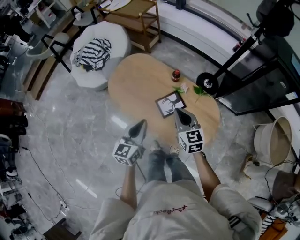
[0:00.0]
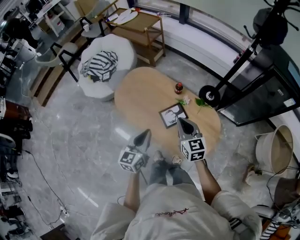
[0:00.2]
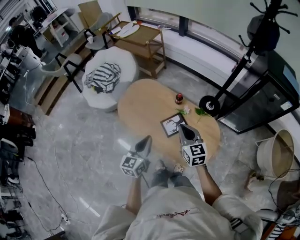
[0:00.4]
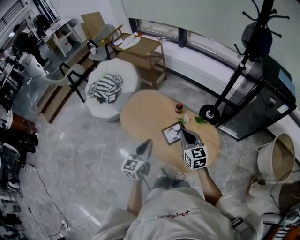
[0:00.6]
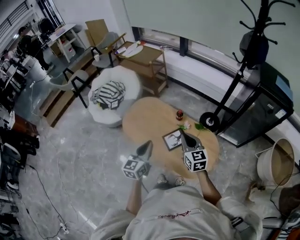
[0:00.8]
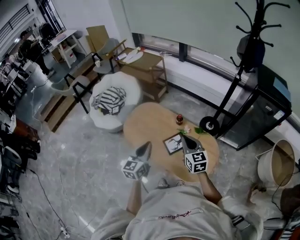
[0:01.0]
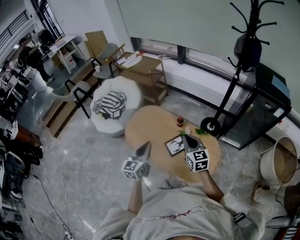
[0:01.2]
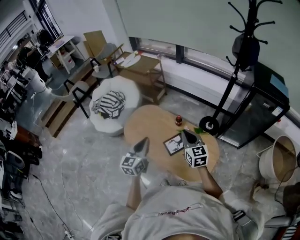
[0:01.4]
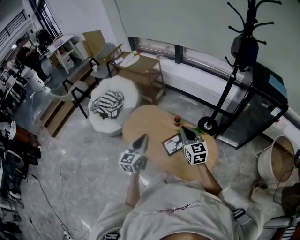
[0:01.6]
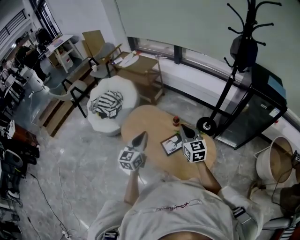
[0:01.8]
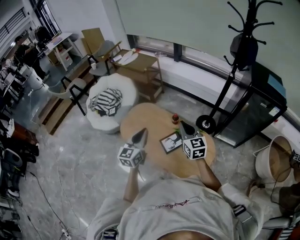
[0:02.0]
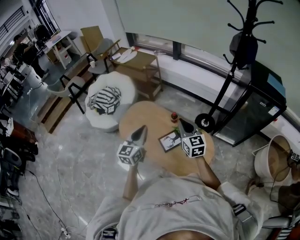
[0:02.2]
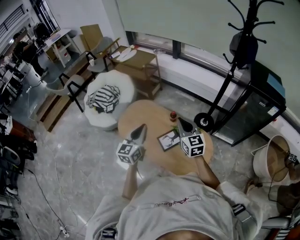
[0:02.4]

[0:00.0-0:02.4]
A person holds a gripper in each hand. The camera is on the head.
0:00.0 to 0:01.2: The grippers both shift upward by some 15 cm.
0:01.2 to 0:02.4: The right gripper shifts by some 5 cm. Meanwhile the left gripper heads forward, covering approximately 5 cm.

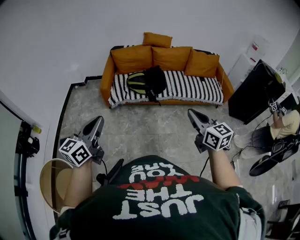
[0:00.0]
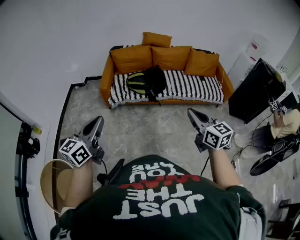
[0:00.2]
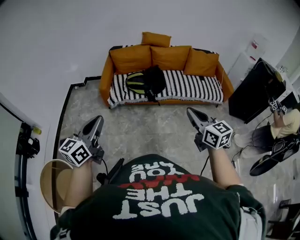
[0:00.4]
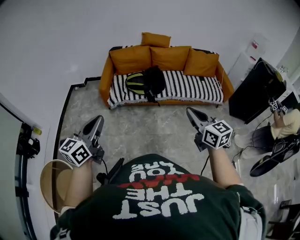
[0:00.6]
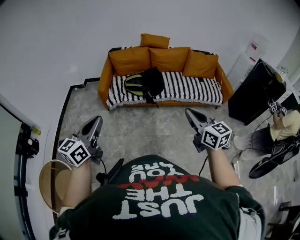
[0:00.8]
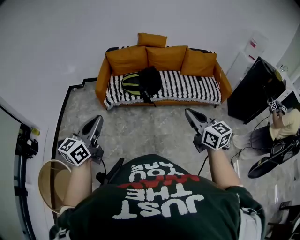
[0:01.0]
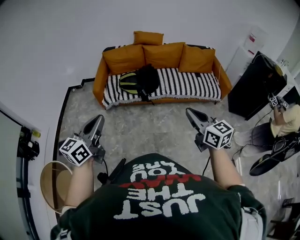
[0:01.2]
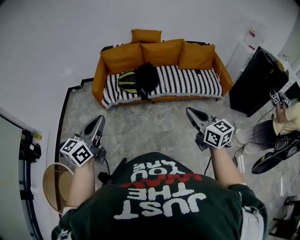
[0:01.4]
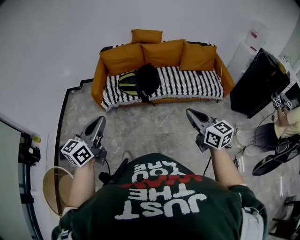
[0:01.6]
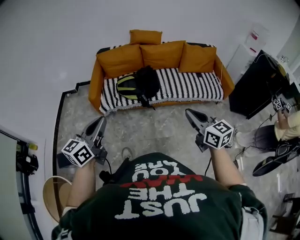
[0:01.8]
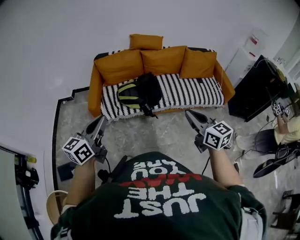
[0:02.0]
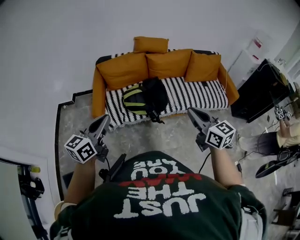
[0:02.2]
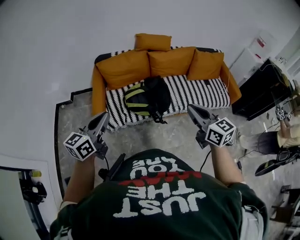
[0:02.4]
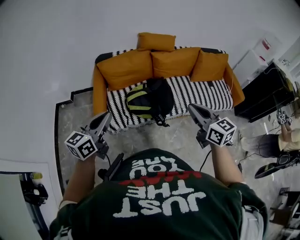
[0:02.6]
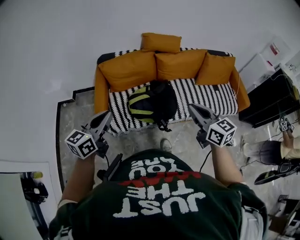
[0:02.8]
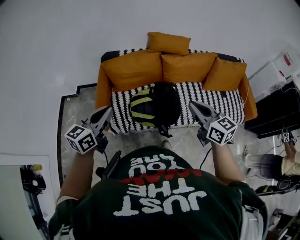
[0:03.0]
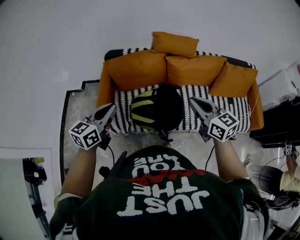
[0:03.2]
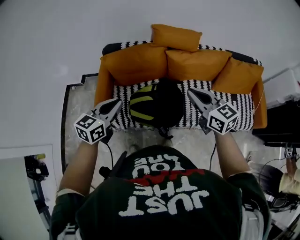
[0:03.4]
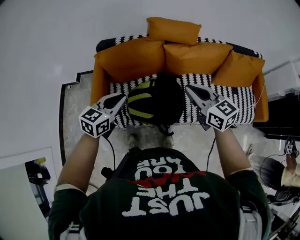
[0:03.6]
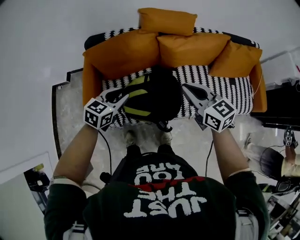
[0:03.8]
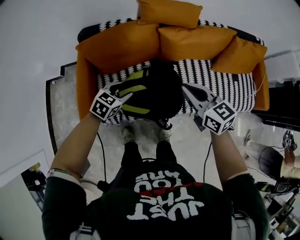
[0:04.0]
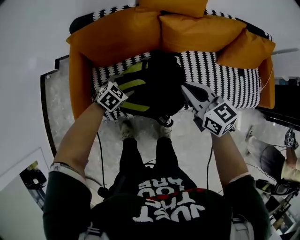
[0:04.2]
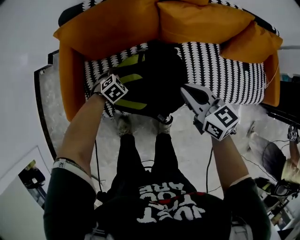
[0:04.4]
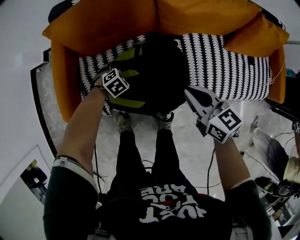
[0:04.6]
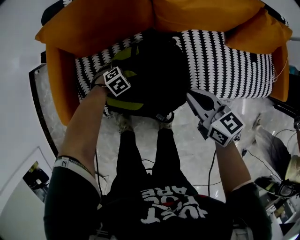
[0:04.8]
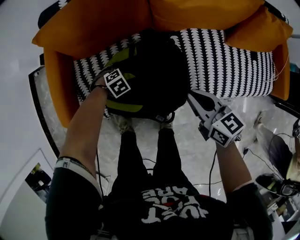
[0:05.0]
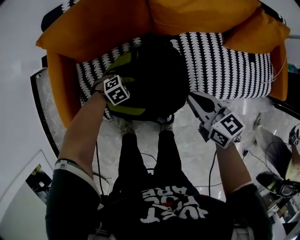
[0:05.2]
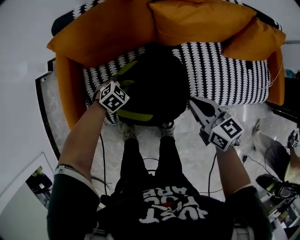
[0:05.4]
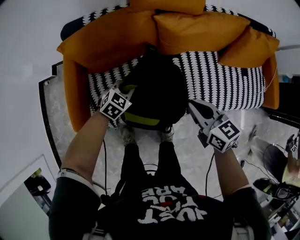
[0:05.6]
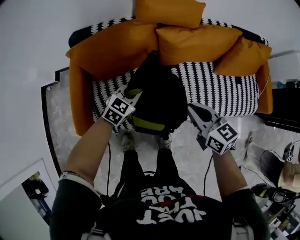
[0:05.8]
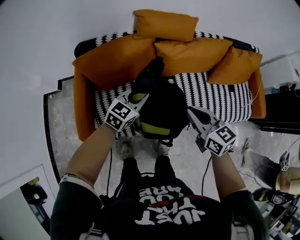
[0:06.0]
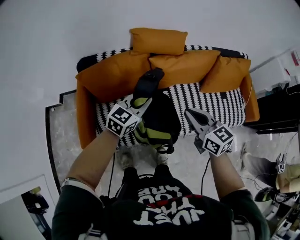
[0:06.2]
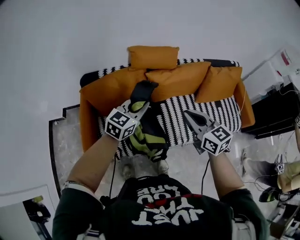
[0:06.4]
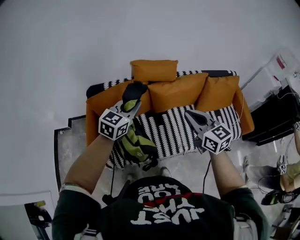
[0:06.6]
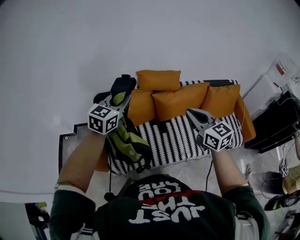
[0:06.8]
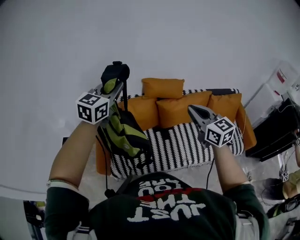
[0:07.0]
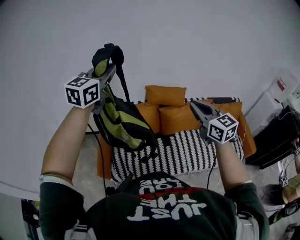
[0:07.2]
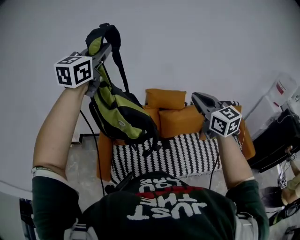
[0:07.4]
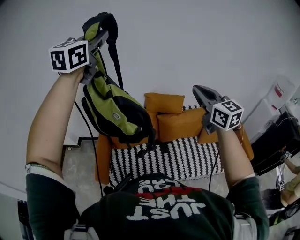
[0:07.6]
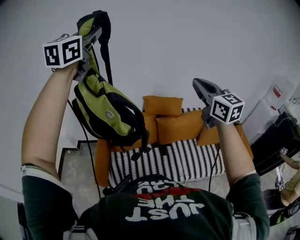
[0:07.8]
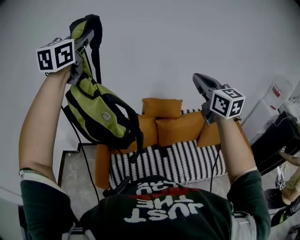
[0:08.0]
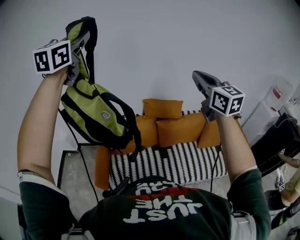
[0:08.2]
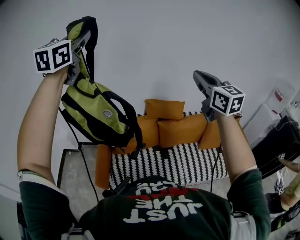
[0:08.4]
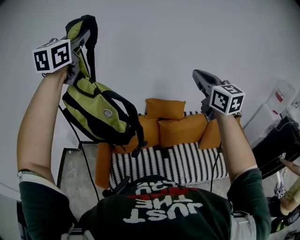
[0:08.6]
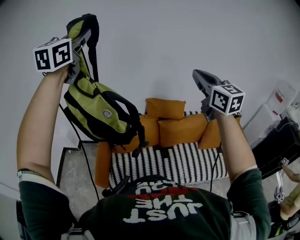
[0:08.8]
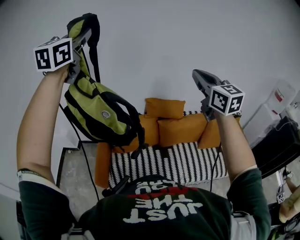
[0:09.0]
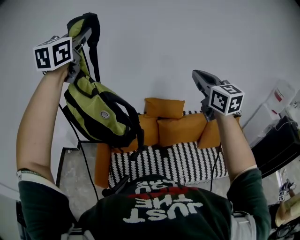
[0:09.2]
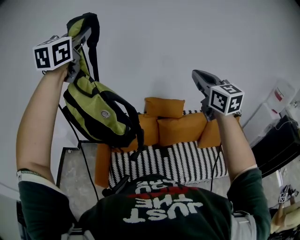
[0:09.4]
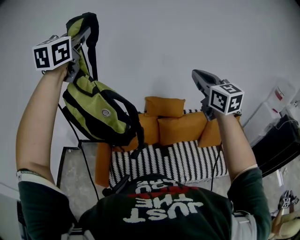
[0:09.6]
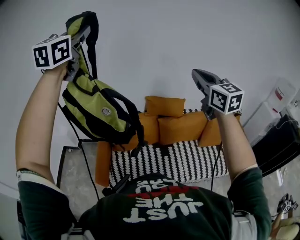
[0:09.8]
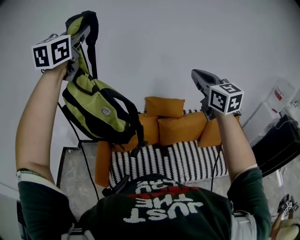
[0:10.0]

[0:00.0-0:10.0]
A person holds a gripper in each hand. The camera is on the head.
0:00.0 to 0:01.4: Both grippers travel together to the right, approximately 10 cm.
0:01.4 to 0:02.8: The pair of grippers is taken forward and to the left, about 50 cm.
0:02.8 to 0:04.2: The right gripper is displaced forward and downward by about 30 cm. The left gripper goes about 50 cm downward and forward, tilts its fingers about 50 degrees downward, and opens.
0:04.2 to 0:05.8: The right gripper reaches roughly 15 cm downward, then returns; the left gripper travels downward and back again, some 20 cm each way, changes its angle by about 20 degrees, and closes.
0:05.8 to 0:07.2: The left gripper travels upward by some 60 cm, and angles its fingers upward, by approximately 30 degrees; the right gripper goes approximately 35 cm upward, and rotates some 30 degrees.
0:07.2 to 0:08.6: The right gripper moves upward and forward, roughly 15 cm, while the left gripper heads upward, covering roughly 20 cm.
0:08.6 to 0:10.0: The grippers move only a little.

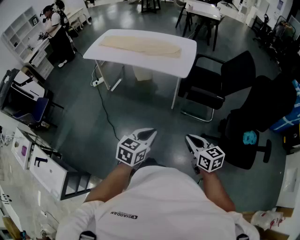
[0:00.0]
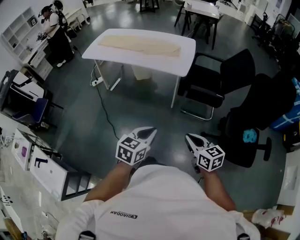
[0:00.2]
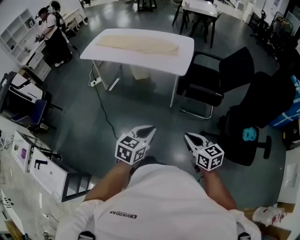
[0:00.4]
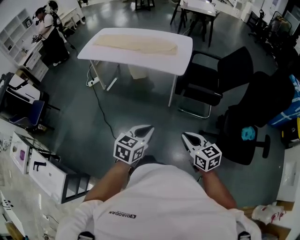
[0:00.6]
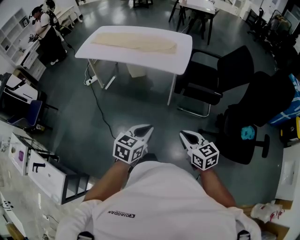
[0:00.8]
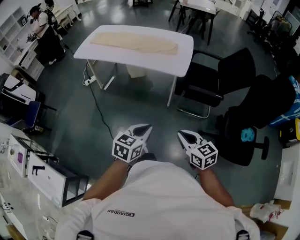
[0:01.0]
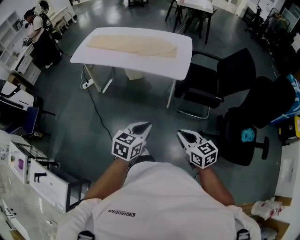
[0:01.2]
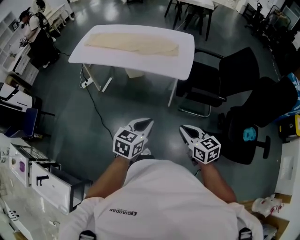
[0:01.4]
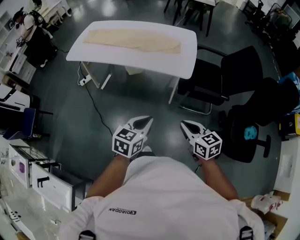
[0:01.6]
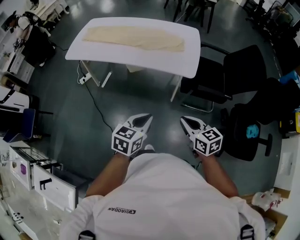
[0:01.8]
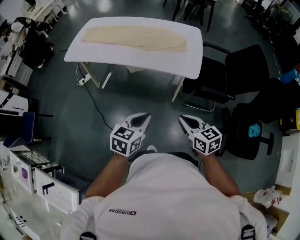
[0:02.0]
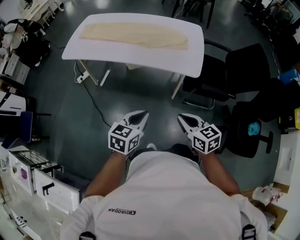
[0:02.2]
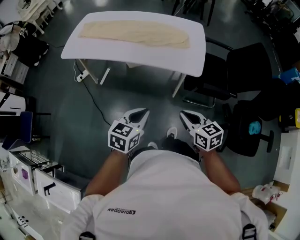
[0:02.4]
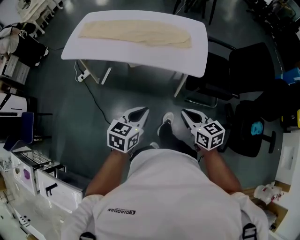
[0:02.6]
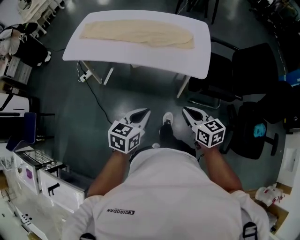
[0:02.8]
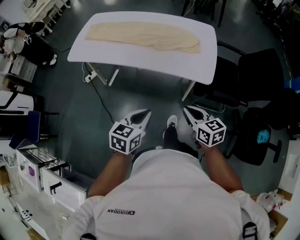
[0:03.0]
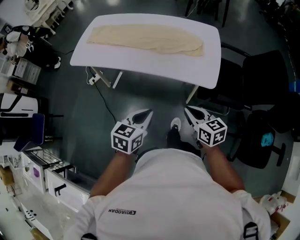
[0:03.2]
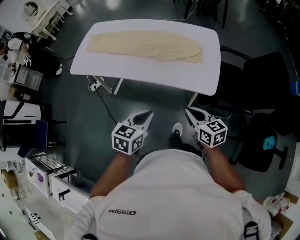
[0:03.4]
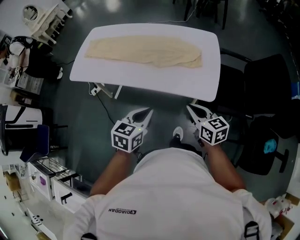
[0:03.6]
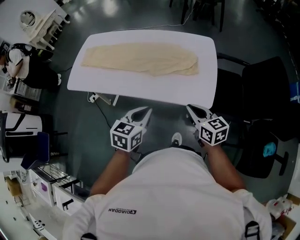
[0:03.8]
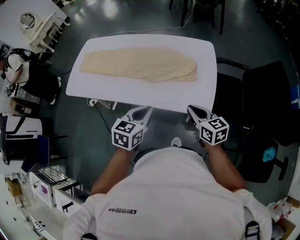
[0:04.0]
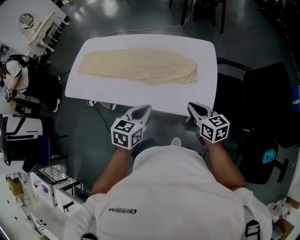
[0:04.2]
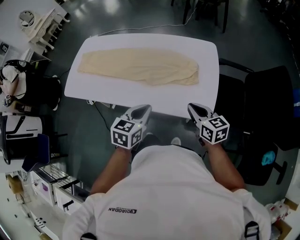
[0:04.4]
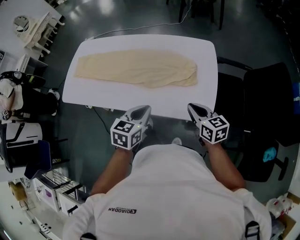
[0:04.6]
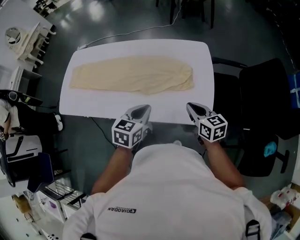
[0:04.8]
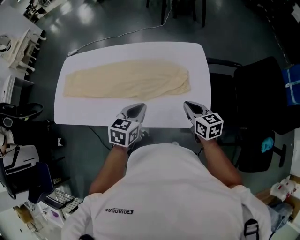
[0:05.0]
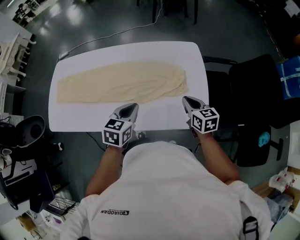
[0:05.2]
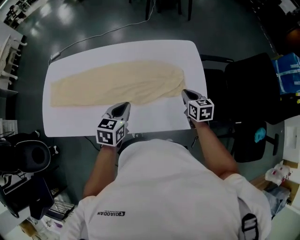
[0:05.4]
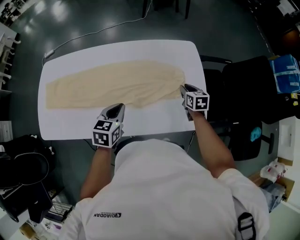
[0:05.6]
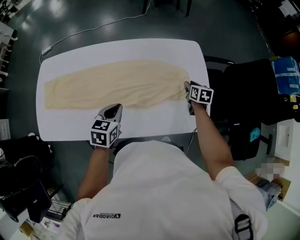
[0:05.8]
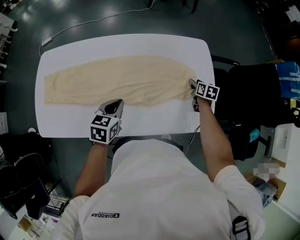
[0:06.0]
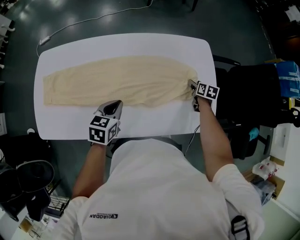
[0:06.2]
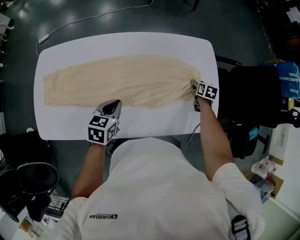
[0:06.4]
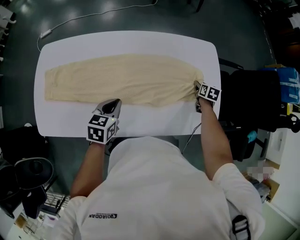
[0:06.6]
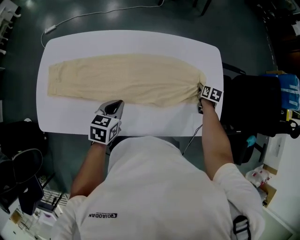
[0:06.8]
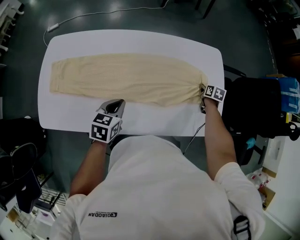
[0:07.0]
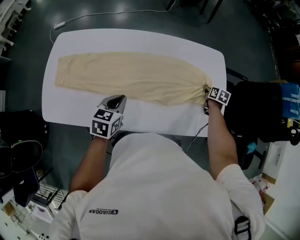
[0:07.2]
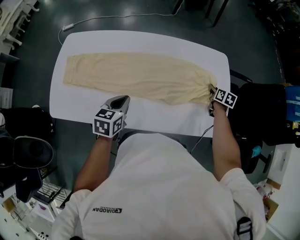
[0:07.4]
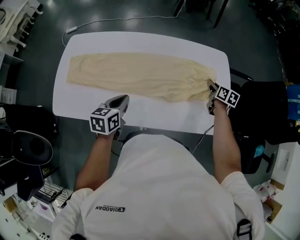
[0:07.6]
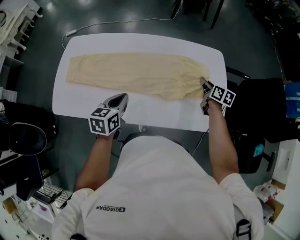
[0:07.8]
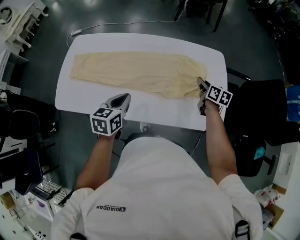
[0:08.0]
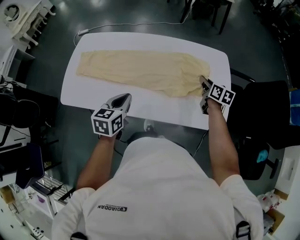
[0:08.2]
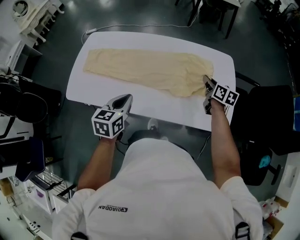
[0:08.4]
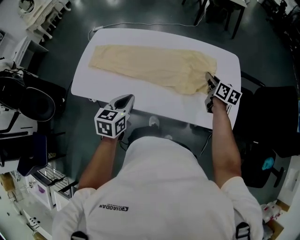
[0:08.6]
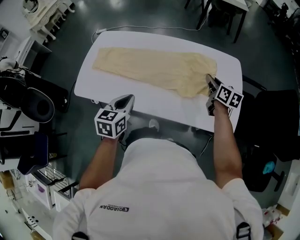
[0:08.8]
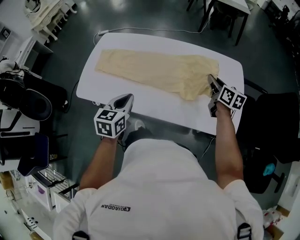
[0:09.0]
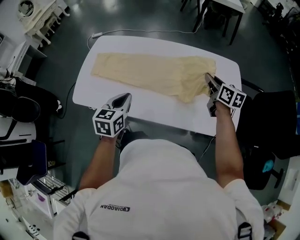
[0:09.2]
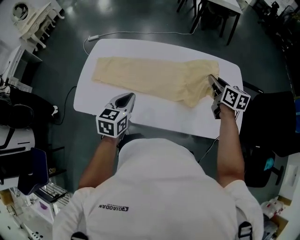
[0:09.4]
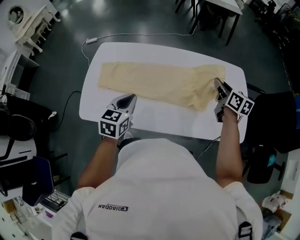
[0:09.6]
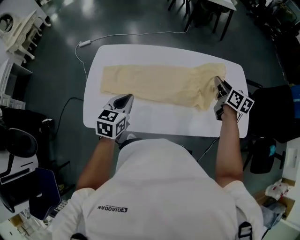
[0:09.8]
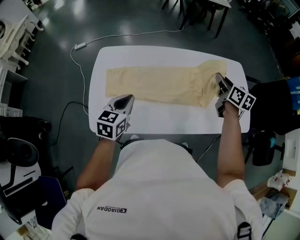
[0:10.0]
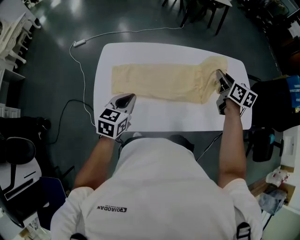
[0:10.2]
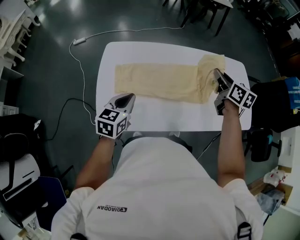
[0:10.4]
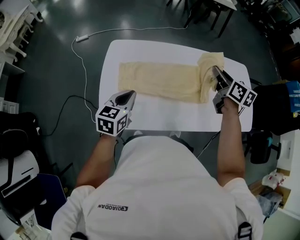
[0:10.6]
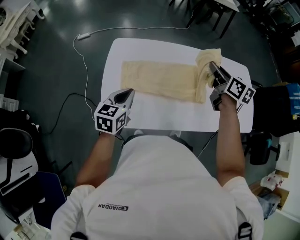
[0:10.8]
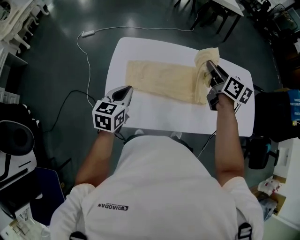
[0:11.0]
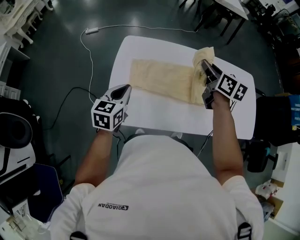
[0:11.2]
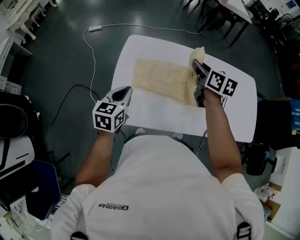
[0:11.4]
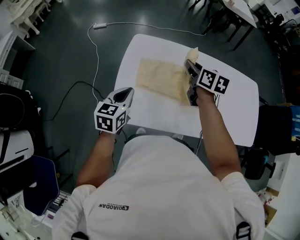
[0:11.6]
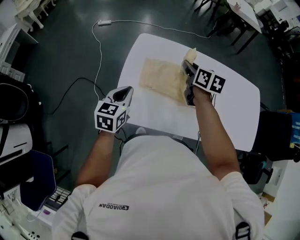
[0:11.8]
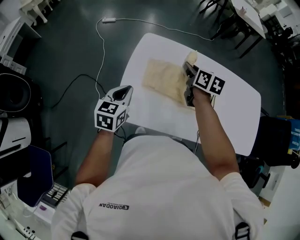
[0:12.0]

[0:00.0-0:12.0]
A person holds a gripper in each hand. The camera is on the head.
0:00.0 to 0:01.6: Both grippers travel together forward and to the left, about 20 cm.
0:01.6 to 0:03.0: Both grippers move forward and to the left, roughly 20 cm.
0:03.0 to 0:04.4: The two grippers go roughly 25 cm forward.
0:04.4 to 0:06.0: The right gripper ends up about 35 cm from where it was, swivels some 50 degrees, and opens its fingers, while the left gripper moves approximately 30 cm.
0:06.0 to 0:07.6: The left gripper travels to the left and backward by some 10 cm; the right gripper goes roughly 10 cm upward and to the left, and closes its fingers.
0:07.6 to 0:09.0: The right gripper travels upward, to the left and backward by some 20 cm, and rotates some 20 degrees. The left gripper heads backward and upward, covering some 15 cm.
0:09.0 to 0:10.4: The grippers both shift to the left by approximately 30 cm. The left gripper turns by approximately 20 degrees.
0:10.4 to 0:12.0: The right gripper goes roughly 30 cm to the left, while the left gripper travels to the left by about 15 cm.
